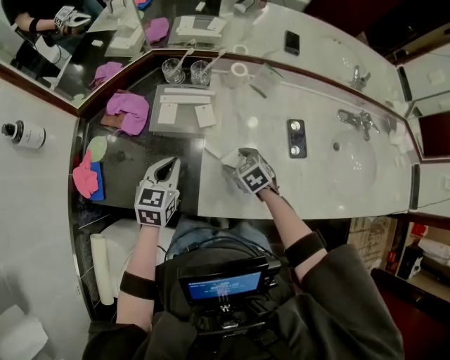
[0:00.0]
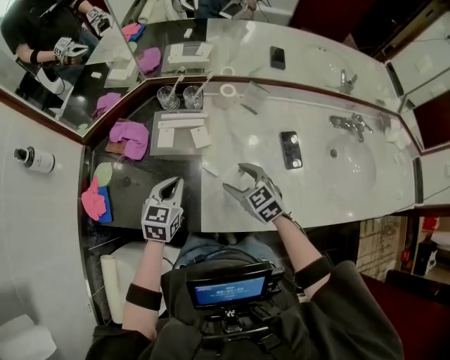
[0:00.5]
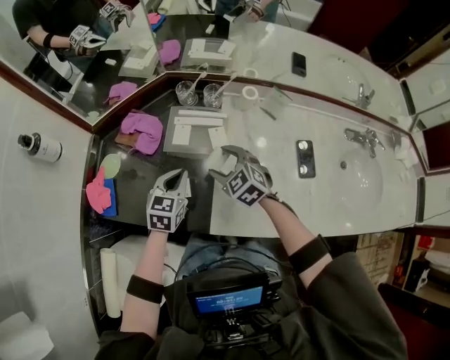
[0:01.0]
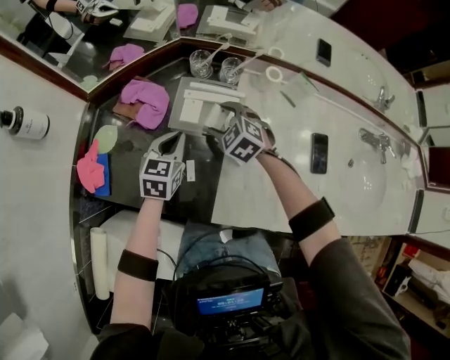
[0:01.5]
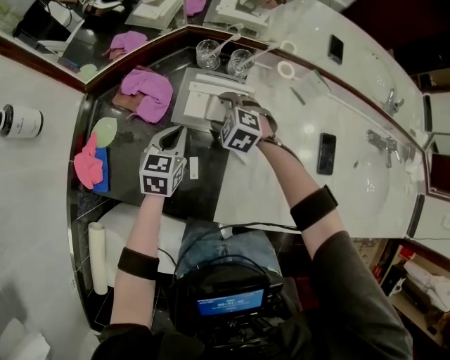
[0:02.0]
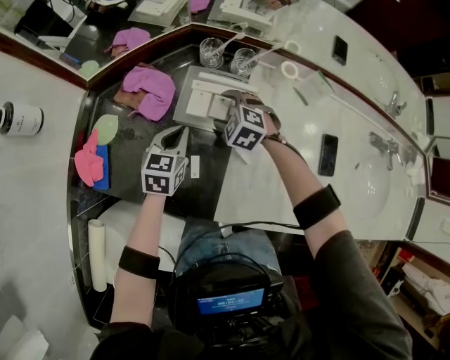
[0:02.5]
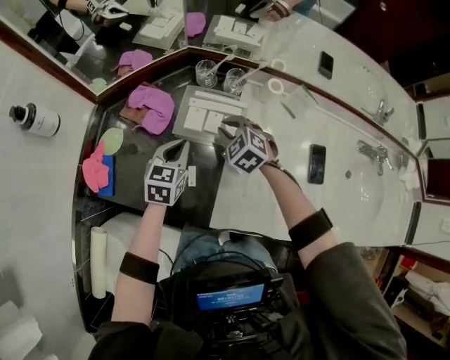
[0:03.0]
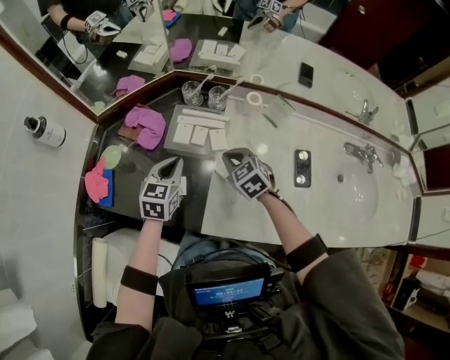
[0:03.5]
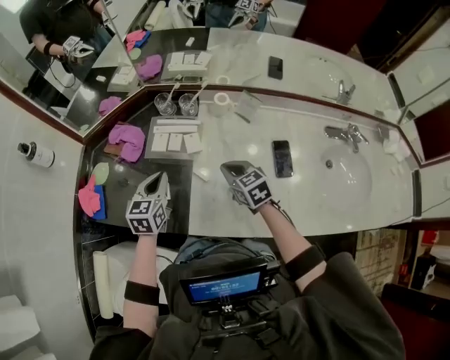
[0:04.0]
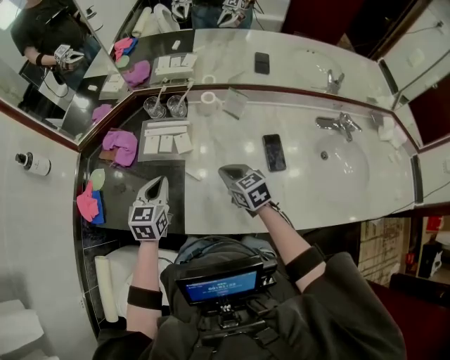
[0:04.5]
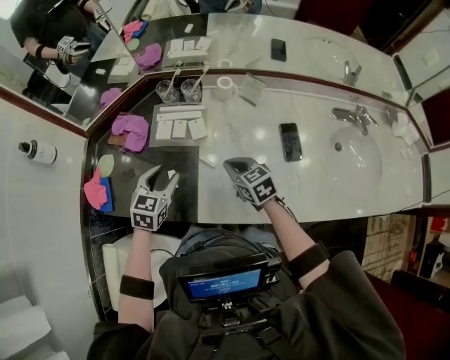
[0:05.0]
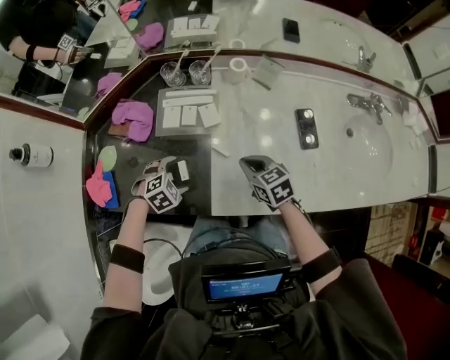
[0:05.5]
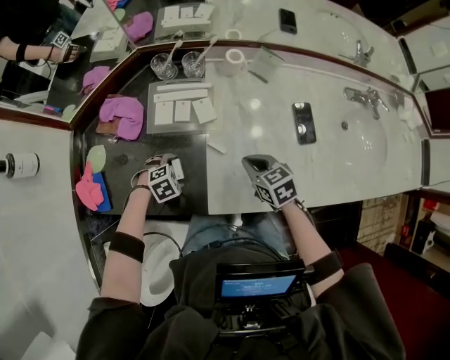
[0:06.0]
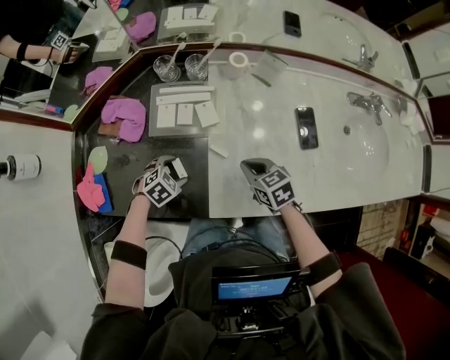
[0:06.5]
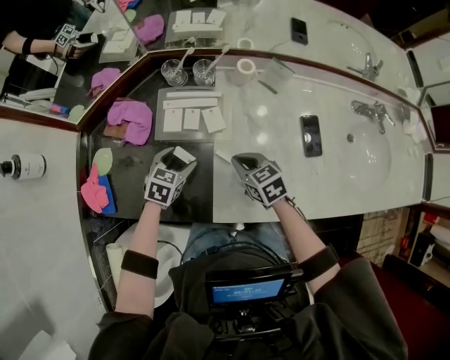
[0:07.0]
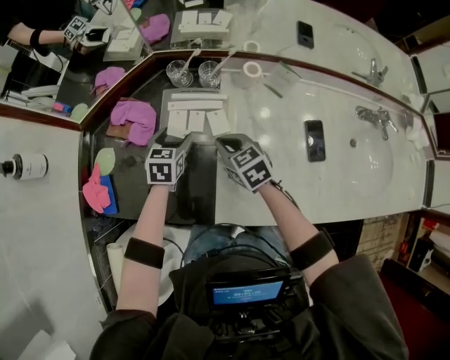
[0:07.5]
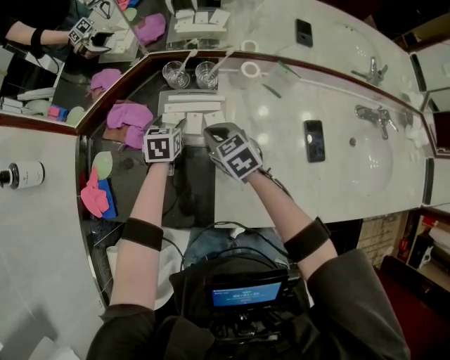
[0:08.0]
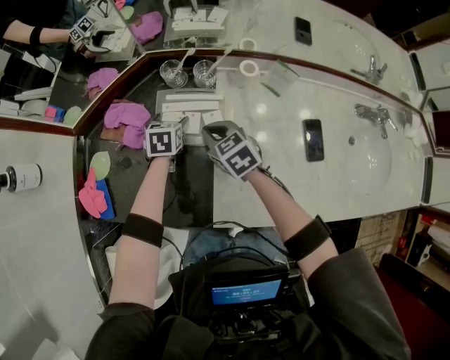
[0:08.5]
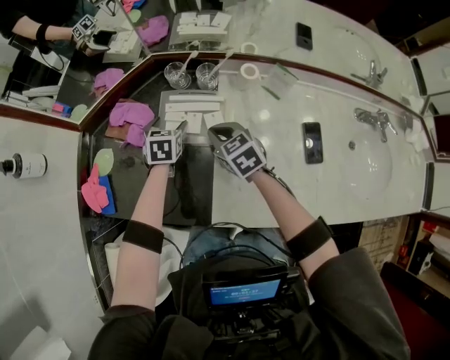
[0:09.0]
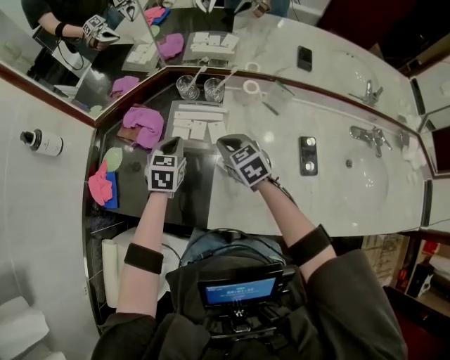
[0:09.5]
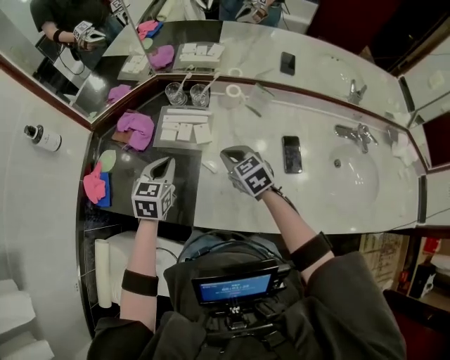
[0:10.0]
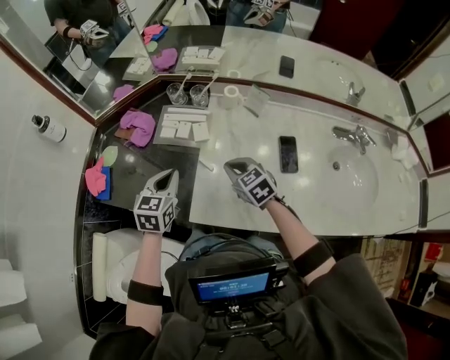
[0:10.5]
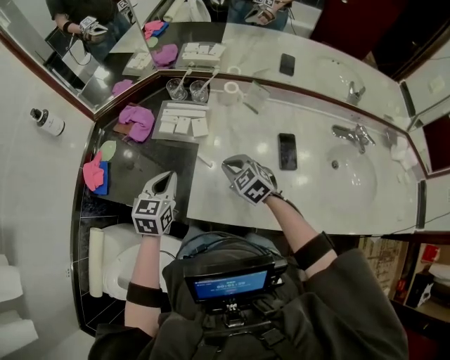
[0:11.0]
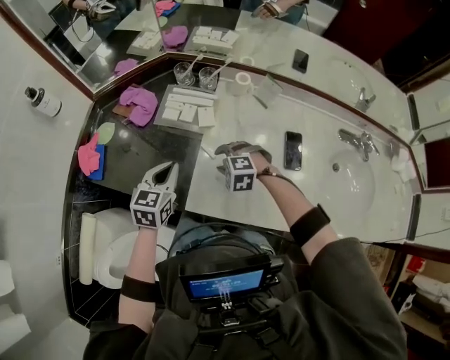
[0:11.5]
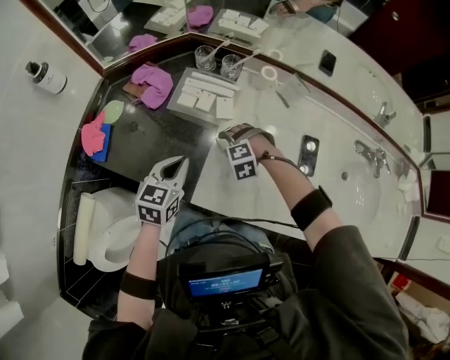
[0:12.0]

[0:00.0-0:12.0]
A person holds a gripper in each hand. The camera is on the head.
0:00.0 to 0:02.0: The left gripper moves forward, downward and to the left, approximately 15 cm. Meanwhile the right gripper moves forward and to the left, approximately 25 cm, and rolls counterclockwise, seen from behind, by some 40 degrees.
0:02.0 to 0:04.0: The right gripper goes approximately 25 cm backward, to the right and upward, twists some 50 degrees clockwise, seen from behind, and closes up, while the left gripper shifts roughly 15 cm upward, backward and to the right.
0:04.0 to 0:06.0: The right gripper goes roughly 5 cm downward; the left gripper is displaced downward by roughly 25 cm, angles its fingers downward, by some 40 degrees, and opens.
0:06.0 to 0:08.0: The right gripper shifts by approximately 20 cm, while the left gripper ends up roughly 25 cm from where it was, and swivels some 70 degrees.
0:08.0 to 0:10.0: The right gripper travels backward, to the right and upward by some 15 cm. Meanwhile the left gripper is displaced backward and upward by some 25 cm, and closes up.
0:10.0 to 0:12.0: The left gripper moves some 10 cm. Meanwhile the right gripper moves downward, some 15 cm, rolls counterclockwise, seen from behind, by about 70 degrees, and opens up.

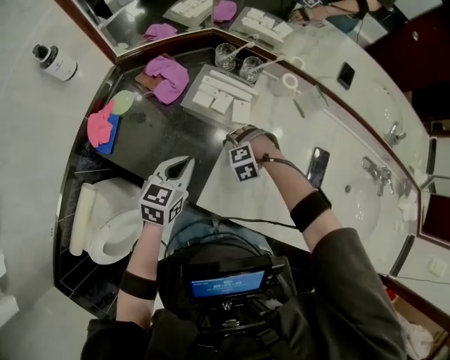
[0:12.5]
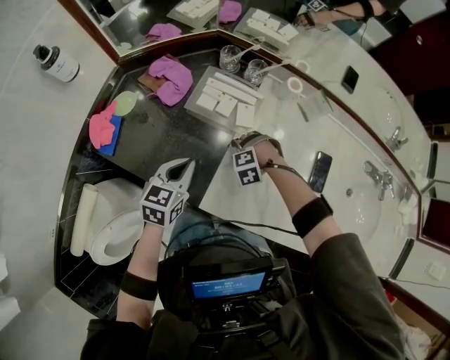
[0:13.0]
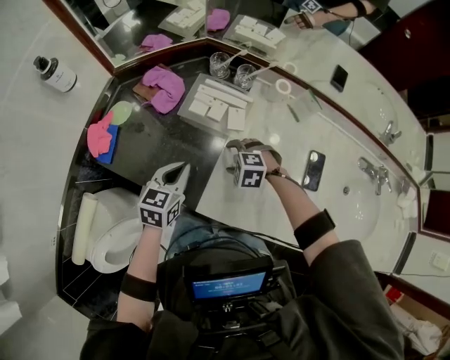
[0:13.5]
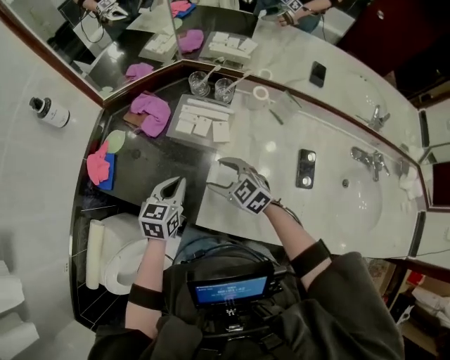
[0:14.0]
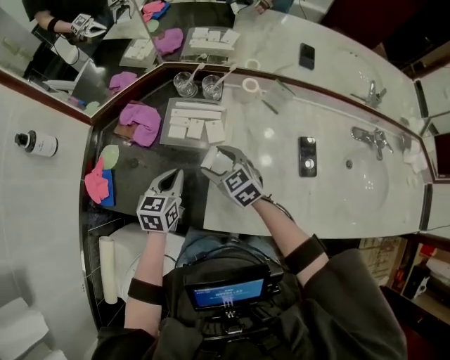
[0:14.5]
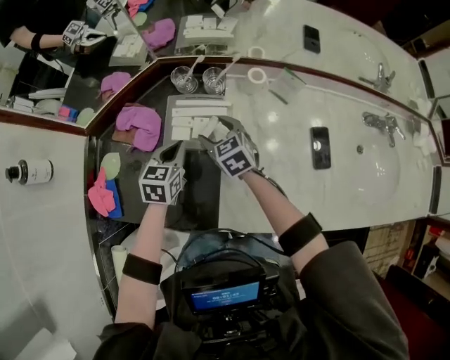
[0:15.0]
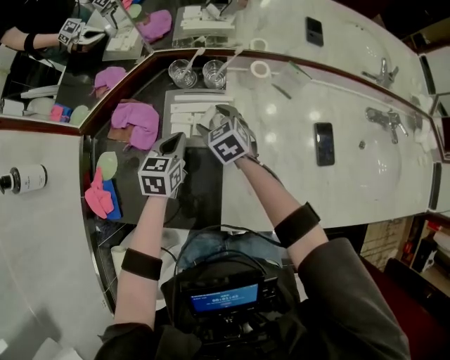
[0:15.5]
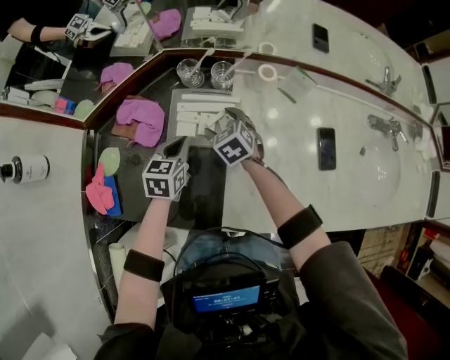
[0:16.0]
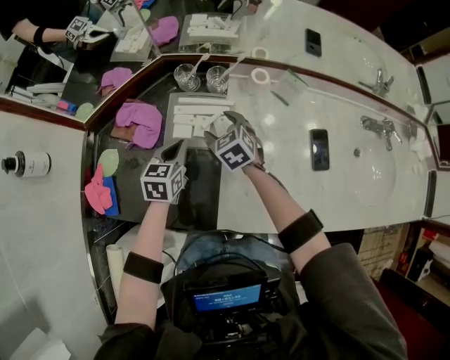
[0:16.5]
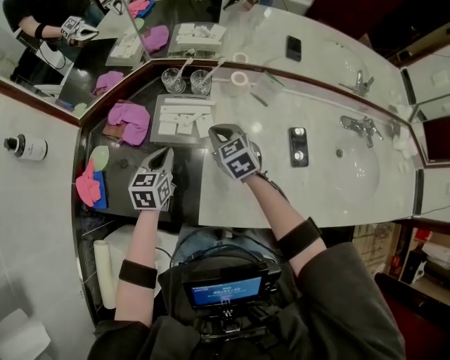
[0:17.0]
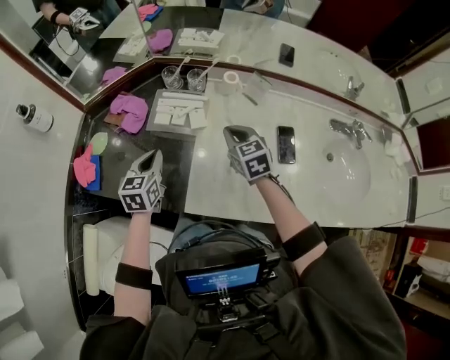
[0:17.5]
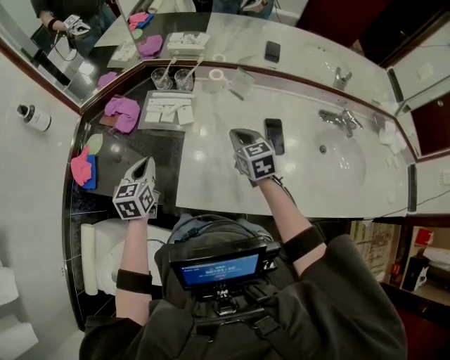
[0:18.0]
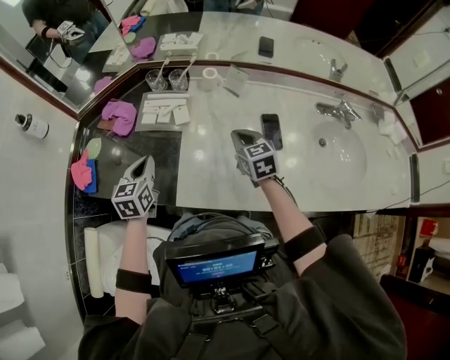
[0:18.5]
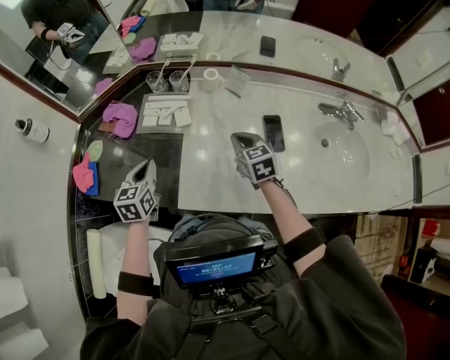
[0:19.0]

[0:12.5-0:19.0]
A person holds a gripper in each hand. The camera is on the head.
0:12.5 to 0:14.5: The right gripper is displaced upward by some 15 cm, and twists about 80 degrees clockwise, seen from behind. The left gripper ends up approximately 5 cm from where it was.
0:14.5 to 0:17.0: The grippers both shift forward by some 5 cm. The right gripper closes.
0:17.0 to 0:19.0: The right gripper heads to the right and backward, covering roughly 20 cm. Meanwhile the left gripper heads backward and upward, covering about 15 cm.

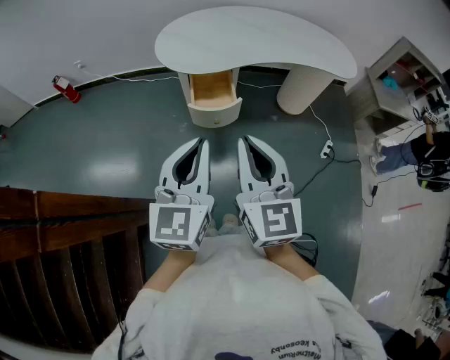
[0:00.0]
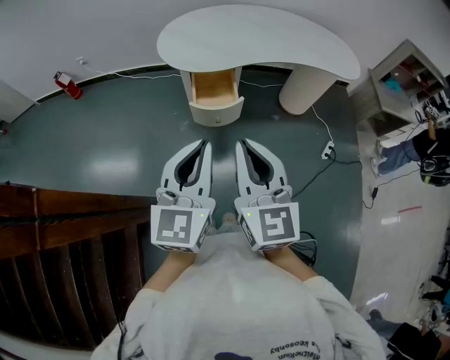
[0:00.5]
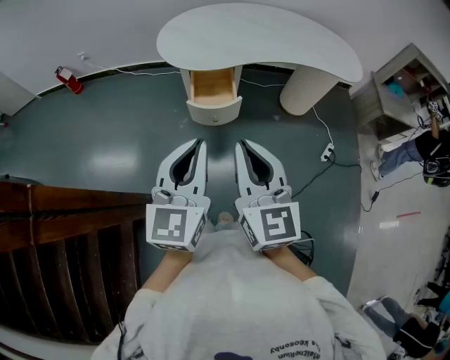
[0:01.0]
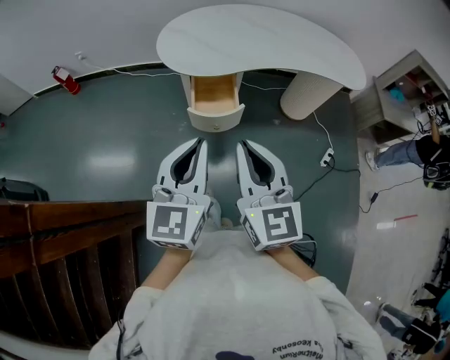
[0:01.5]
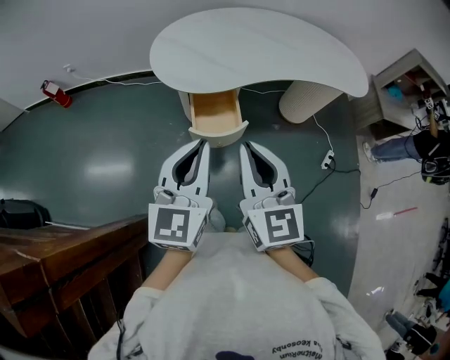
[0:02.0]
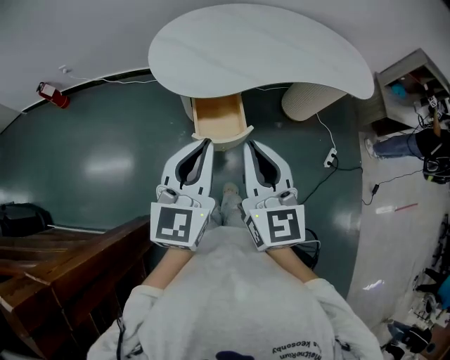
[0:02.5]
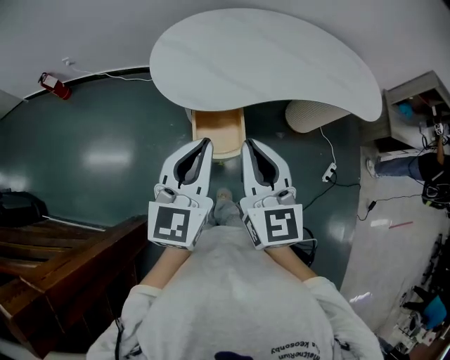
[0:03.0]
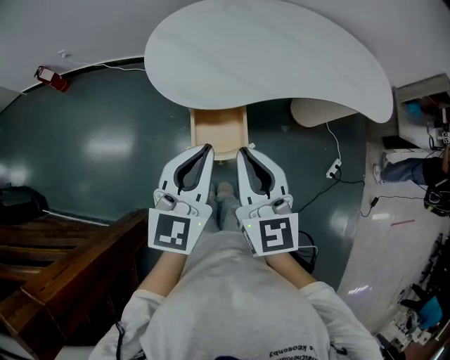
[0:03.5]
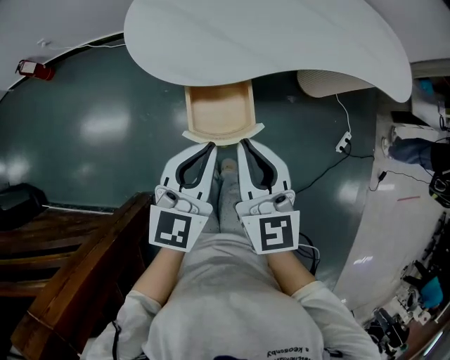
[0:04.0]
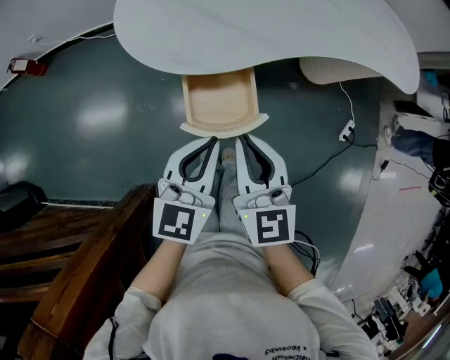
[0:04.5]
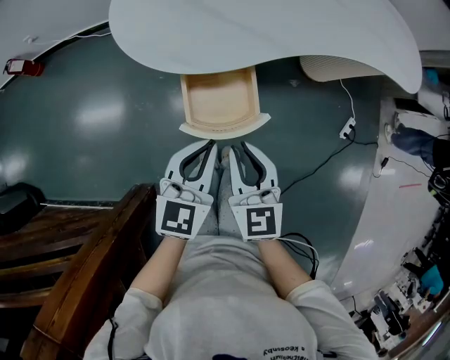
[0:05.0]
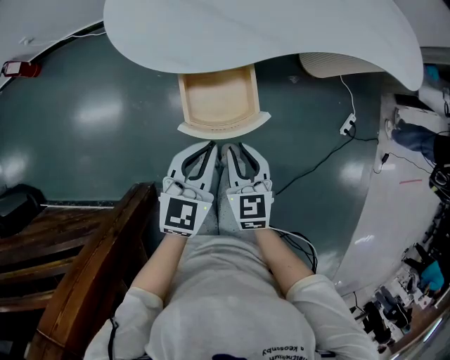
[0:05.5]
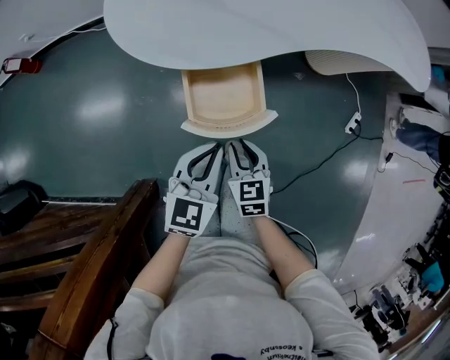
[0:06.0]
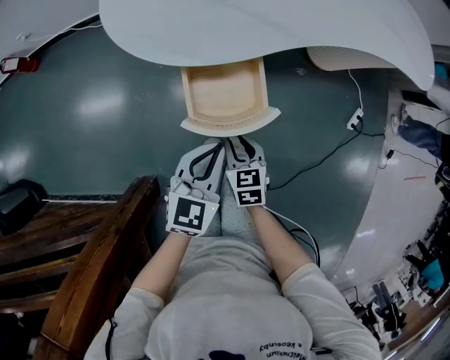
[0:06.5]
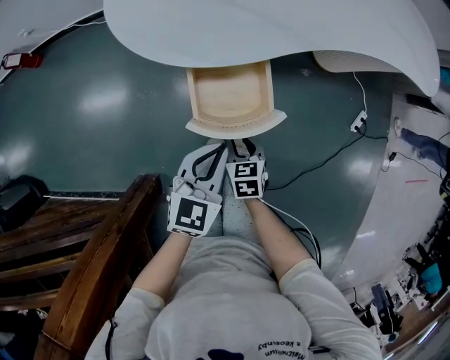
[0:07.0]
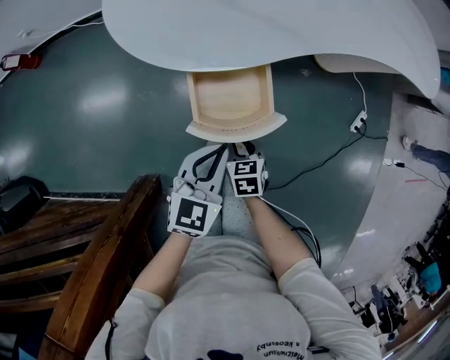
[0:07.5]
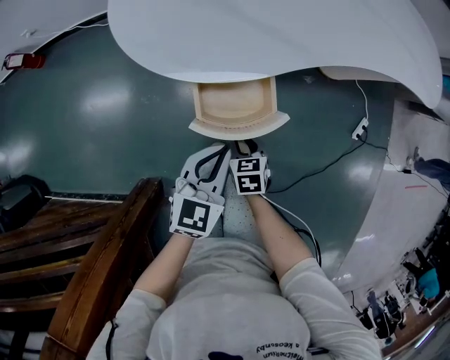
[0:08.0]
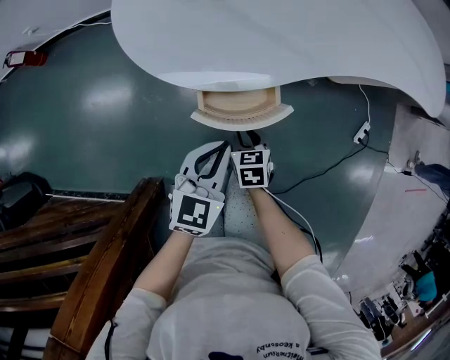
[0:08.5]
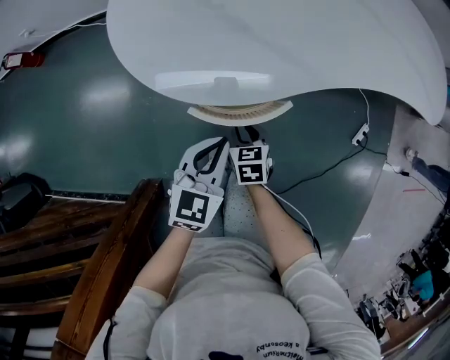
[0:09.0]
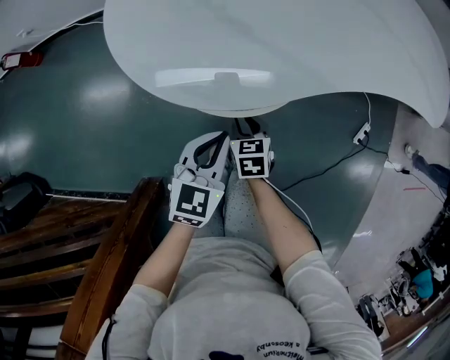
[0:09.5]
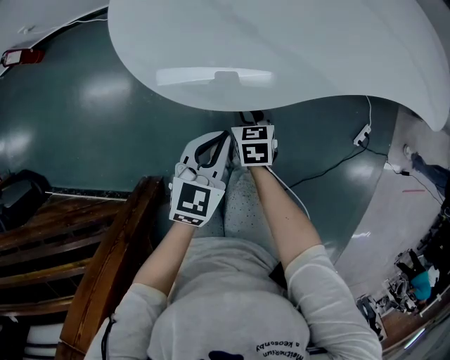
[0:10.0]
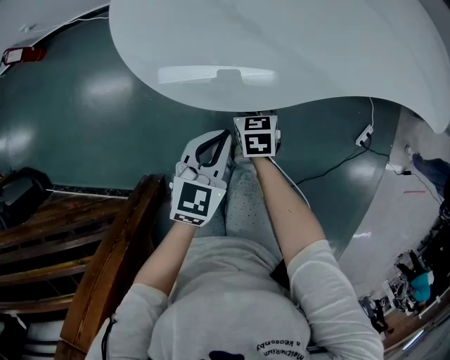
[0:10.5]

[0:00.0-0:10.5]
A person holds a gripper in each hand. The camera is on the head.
0:00.0 to 0:02.0: The grippers both shift forward by about 15 cm.
0:02.0 to 0:04.0: The left gripper travels downward and forward by about 20 cm. Meanwhile the right gripper is displaced forward and downward by roughly 20 cm.
0:04.0 to 0:06.5: The left gripper shifts about 15 cm downward. The right gripper heads downward, covering approximately 30 cm, and angles its fingers downward, by approximately 30 degrees.
0:06.5 to 0:08.5: The grippers both shift forward by approximately 5 cm.
0:08.5 to 0:10.5: The left gripper travels forward by roughly 5 cm; the right gripper is displaced forward by some 15 cm.
